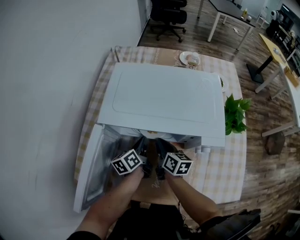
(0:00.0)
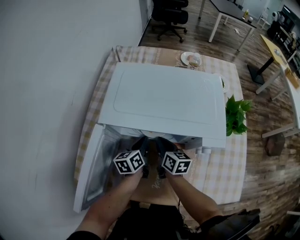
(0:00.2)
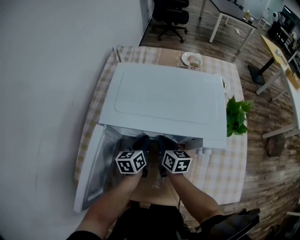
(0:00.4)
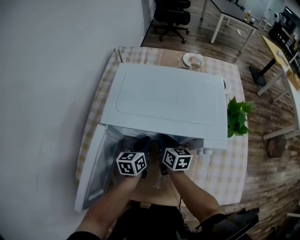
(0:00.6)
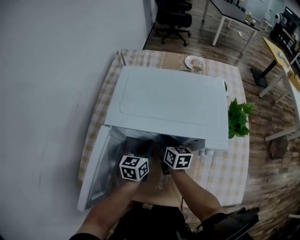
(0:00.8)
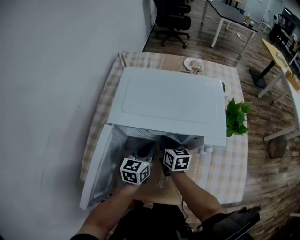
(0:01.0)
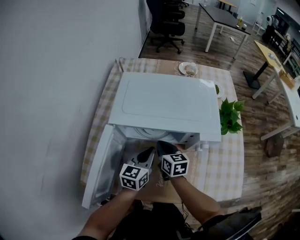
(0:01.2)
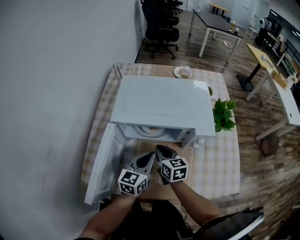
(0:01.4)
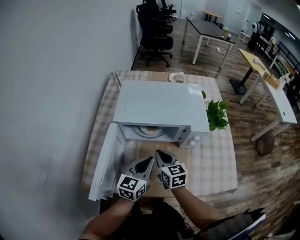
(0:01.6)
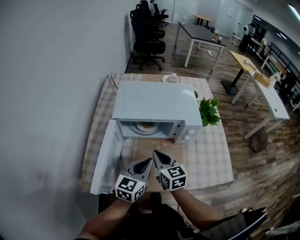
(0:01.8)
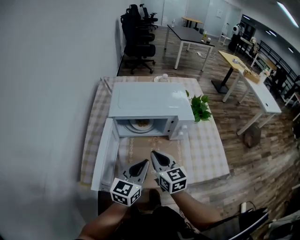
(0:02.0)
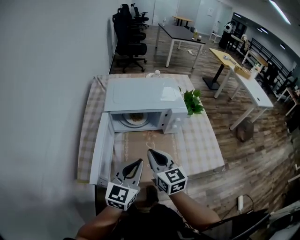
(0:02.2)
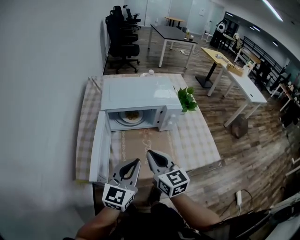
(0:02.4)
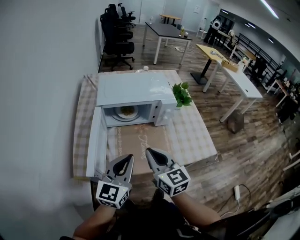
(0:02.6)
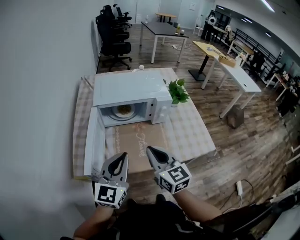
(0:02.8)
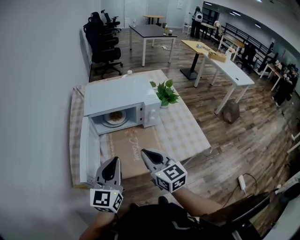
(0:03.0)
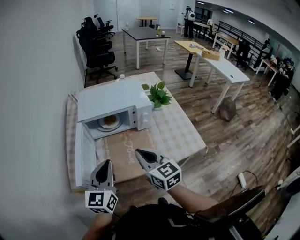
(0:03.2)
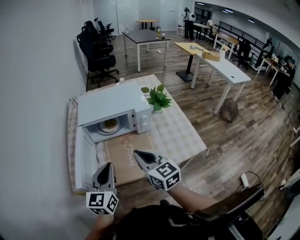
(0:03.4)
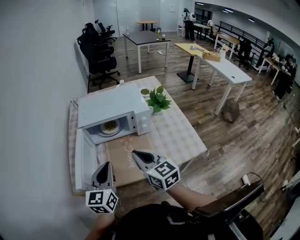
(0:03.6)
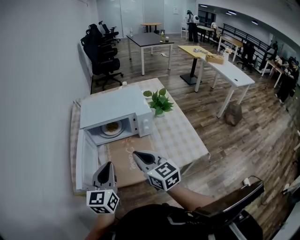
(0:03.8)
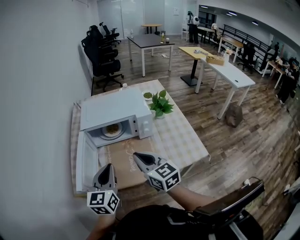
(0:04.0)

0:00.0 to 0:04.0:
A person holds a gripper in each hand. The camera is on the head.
0:00.0 to 0:01.4: The right gripper heads upward and backward, covering roughly 10 cm, and swivels some 20 degrees, while the left gripper heads upward and backward, covering some 15 cm, and twists some 40 degrees clockwise, seen from behind.
0:01.4 to 0:02.6: The two grippers go some 25 cm backward and upward. The left gripper rotates roughly 20 degrees, while the right gripper changes its angle by some 20 degrees.
0:02.6 to 0:04.0: The right gripper shifts some 5 cm to the right.

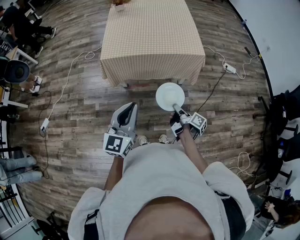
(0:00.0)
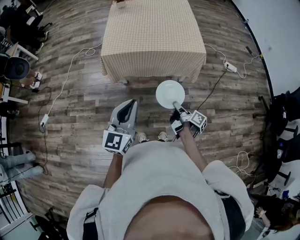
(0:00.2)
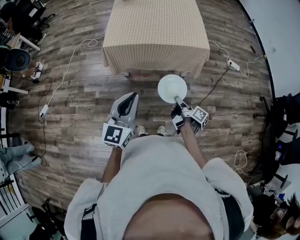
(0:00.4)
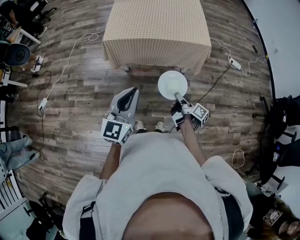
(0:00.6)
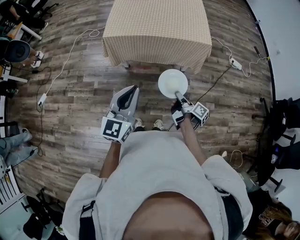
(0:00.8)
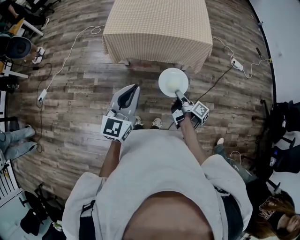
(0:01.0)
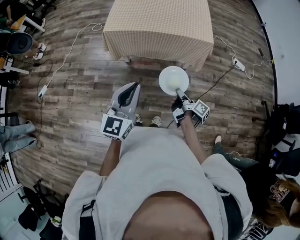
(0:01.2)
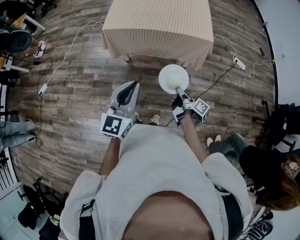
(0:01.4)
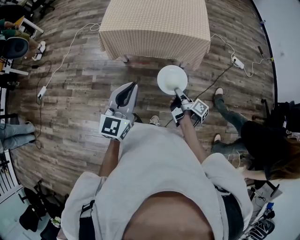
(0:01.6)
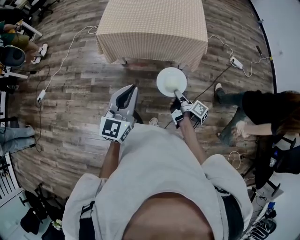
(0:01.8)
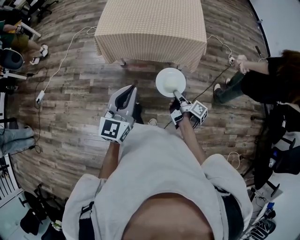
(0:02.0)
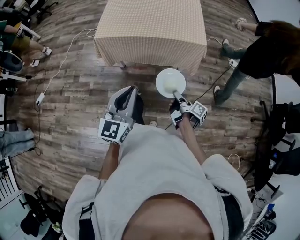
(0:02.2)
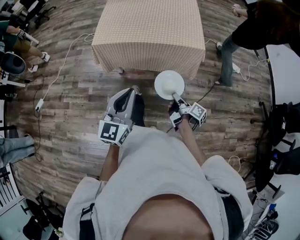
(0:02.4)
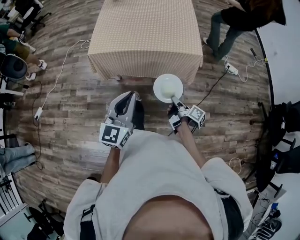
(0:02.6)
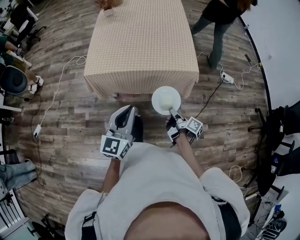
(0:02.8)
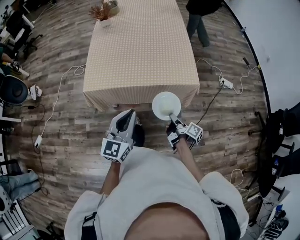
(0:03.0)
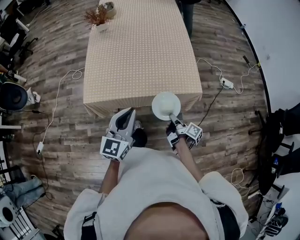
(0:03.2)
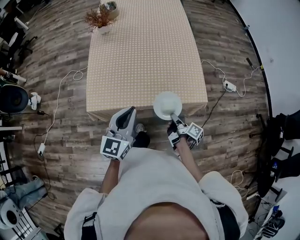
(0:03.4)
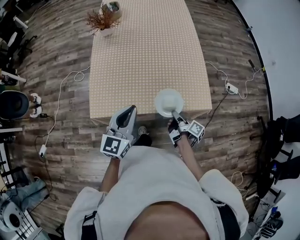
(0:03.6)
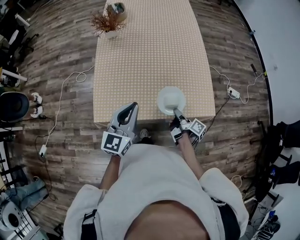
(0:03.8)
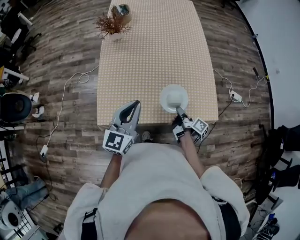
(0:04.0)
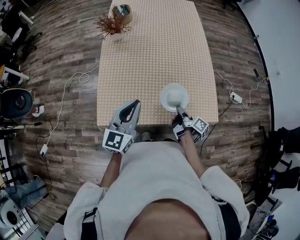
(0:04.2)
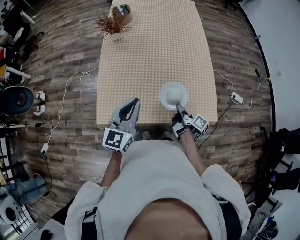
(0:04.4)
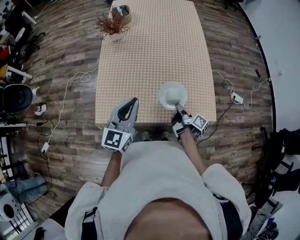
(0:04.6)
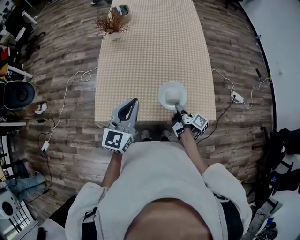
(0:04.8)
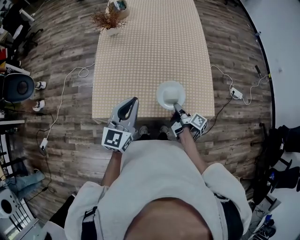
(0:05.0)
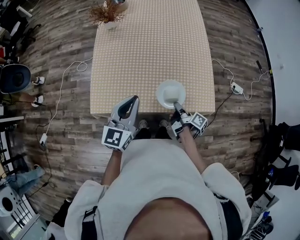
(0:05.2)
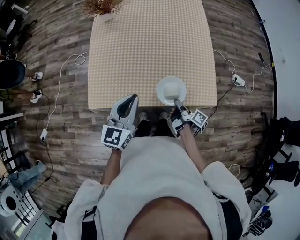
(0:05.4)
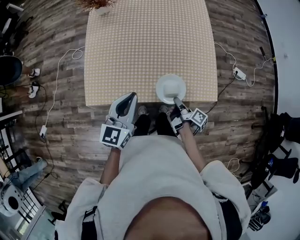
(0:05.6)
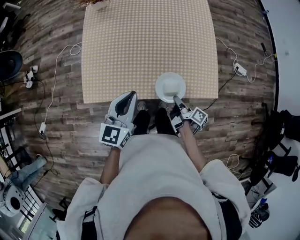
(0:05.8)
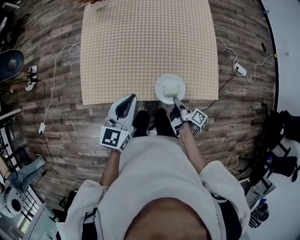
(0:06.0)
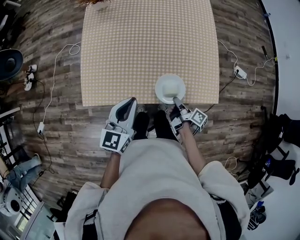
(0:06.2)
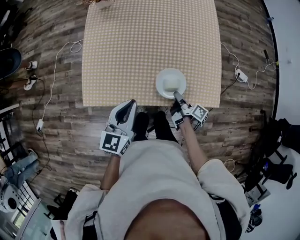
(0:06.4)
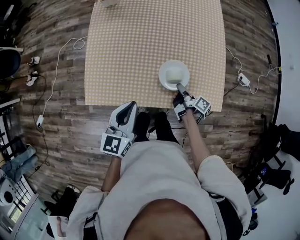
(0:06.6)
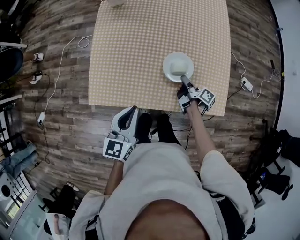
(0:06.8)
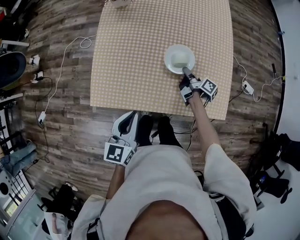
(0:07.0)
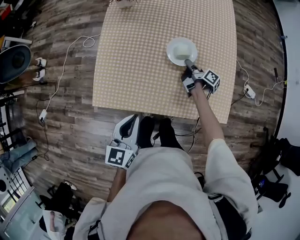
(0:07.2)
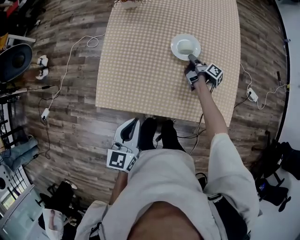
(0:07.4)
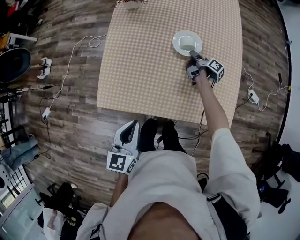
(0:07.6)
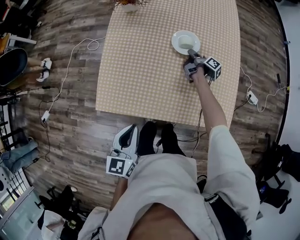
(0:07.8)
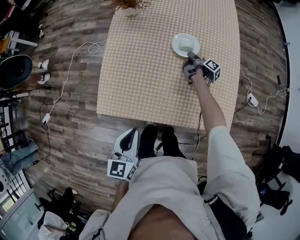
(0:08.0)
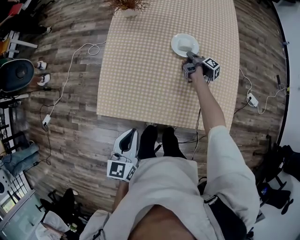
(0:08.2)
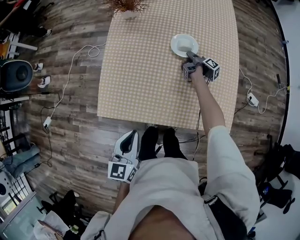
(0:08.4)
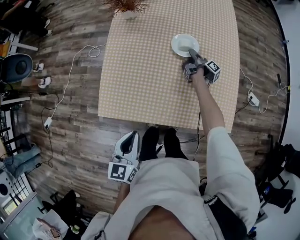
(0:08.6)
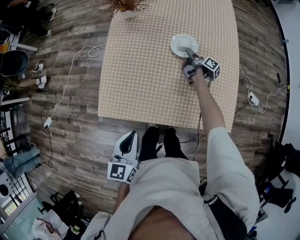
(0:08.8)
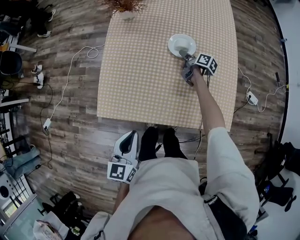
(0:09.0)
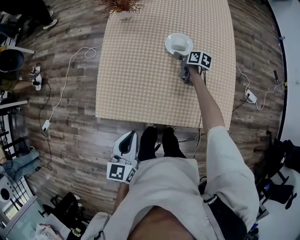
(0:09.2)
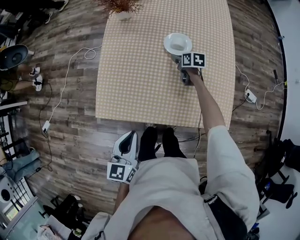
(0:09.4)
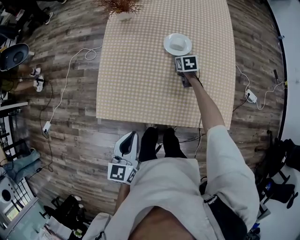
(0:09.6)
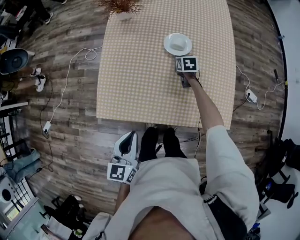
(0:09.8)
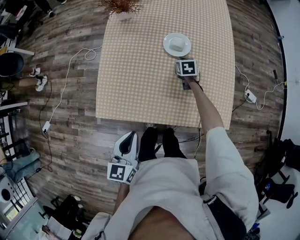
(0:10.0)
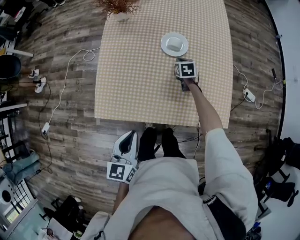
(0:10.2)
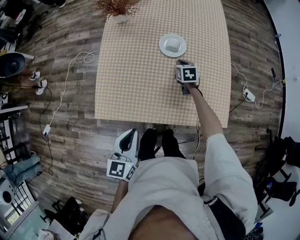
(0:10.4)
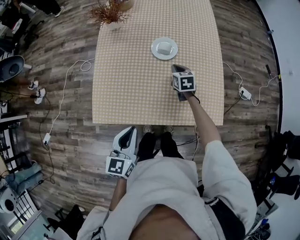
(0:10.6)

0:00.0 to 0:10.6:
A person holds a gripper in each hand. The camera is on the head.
0:00.0 to 0:01.6: The left gripper shifts by roughly 10 cm.
0:01.6 to 0:03.0: The left gripper shifts by approximately 25 cm.
0:03.0 to 0:04.6: The left gripper moves about 30 cm.
0:04.6 to 0:06.0: The left gripper moves downward, roughly 10 cm.
0:06.0 to 0:07.6: The left gripper moves roughly 10 cm.

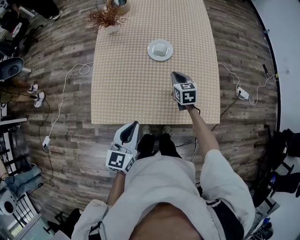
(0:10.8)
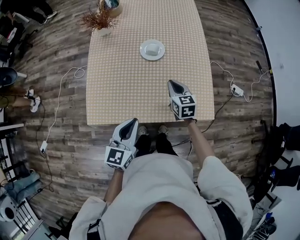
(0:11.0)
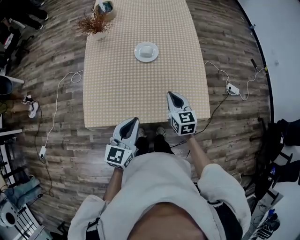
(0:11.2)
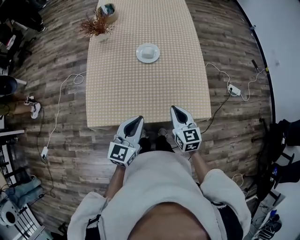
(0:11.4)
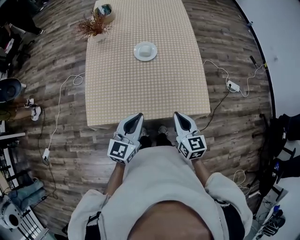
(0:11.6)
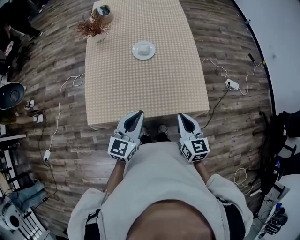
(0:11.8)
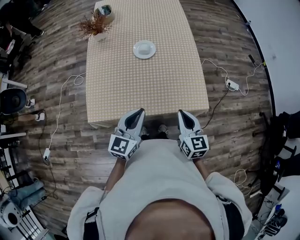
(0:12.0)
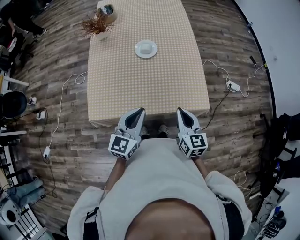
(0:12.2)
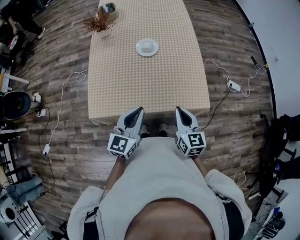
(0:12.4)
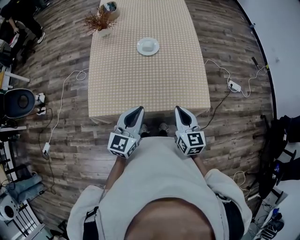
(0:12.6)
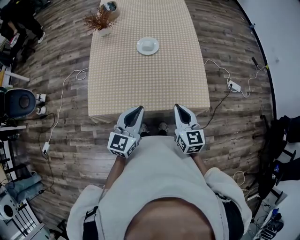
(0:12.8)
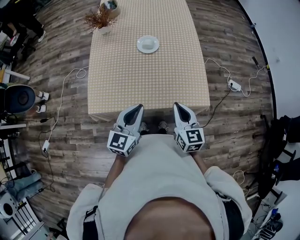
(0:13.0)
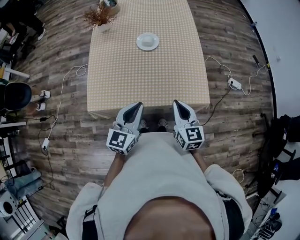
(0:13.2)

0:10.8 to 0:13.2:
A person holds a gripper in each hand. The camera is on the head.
0:10.8 to 0:12.0: The left gripper shifts by approximately 10 cm.

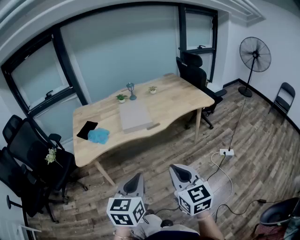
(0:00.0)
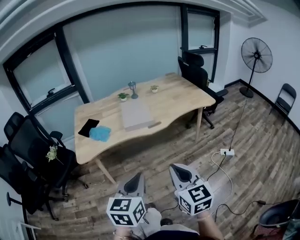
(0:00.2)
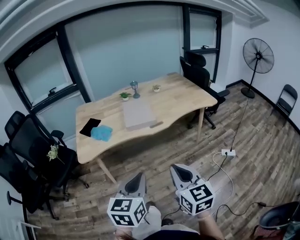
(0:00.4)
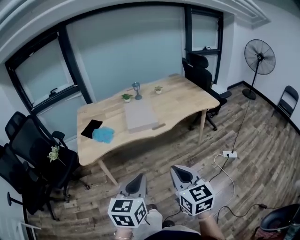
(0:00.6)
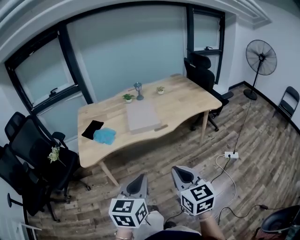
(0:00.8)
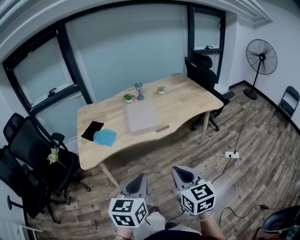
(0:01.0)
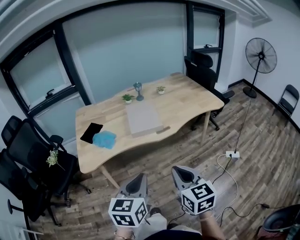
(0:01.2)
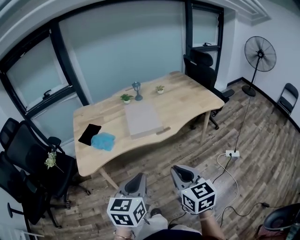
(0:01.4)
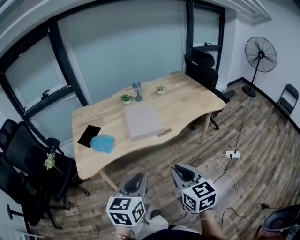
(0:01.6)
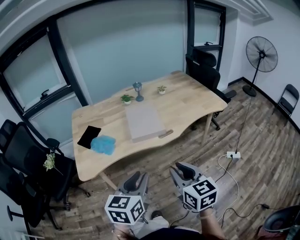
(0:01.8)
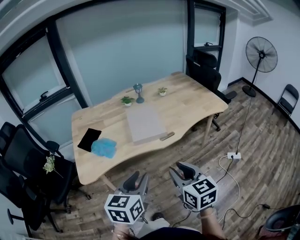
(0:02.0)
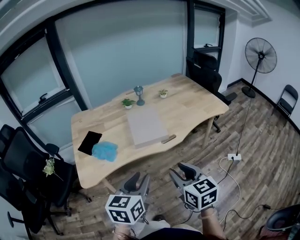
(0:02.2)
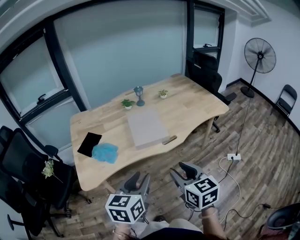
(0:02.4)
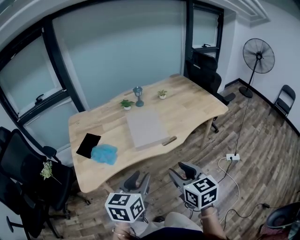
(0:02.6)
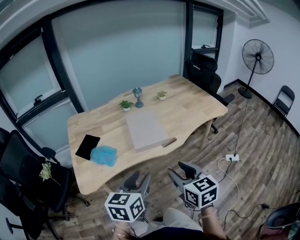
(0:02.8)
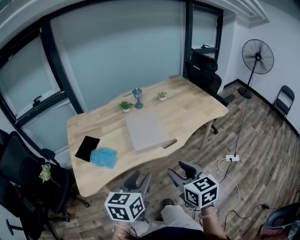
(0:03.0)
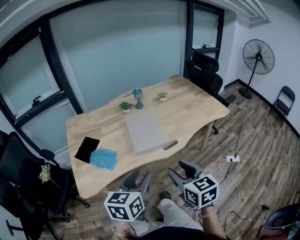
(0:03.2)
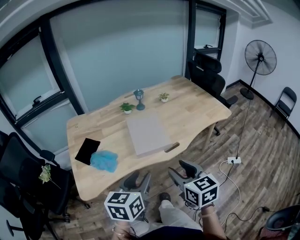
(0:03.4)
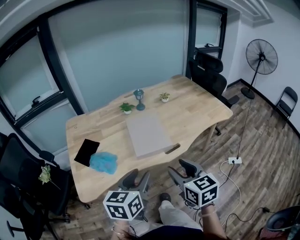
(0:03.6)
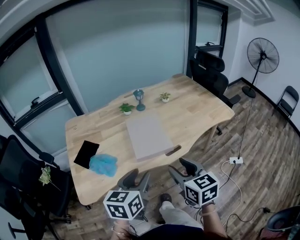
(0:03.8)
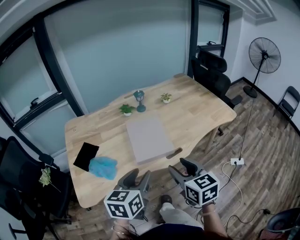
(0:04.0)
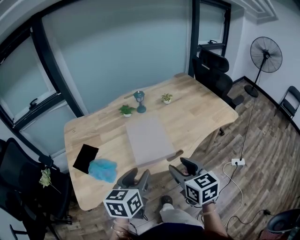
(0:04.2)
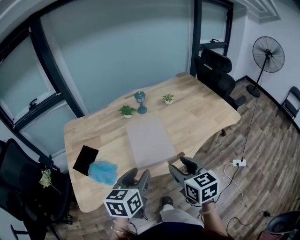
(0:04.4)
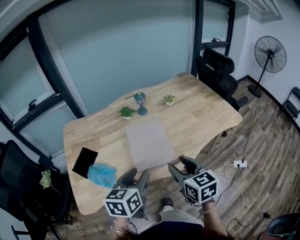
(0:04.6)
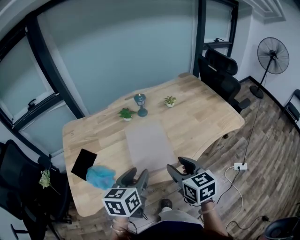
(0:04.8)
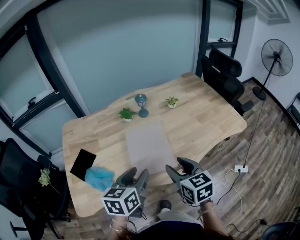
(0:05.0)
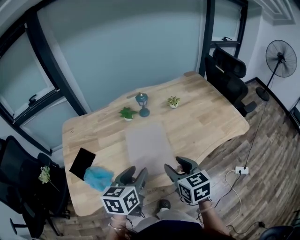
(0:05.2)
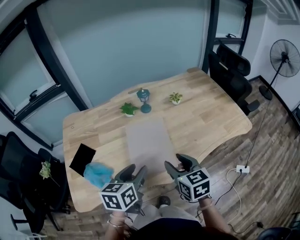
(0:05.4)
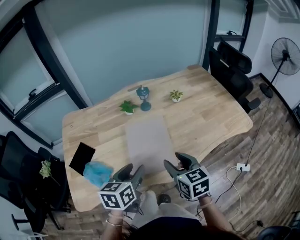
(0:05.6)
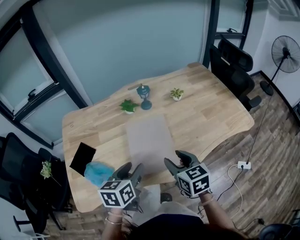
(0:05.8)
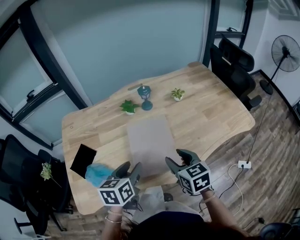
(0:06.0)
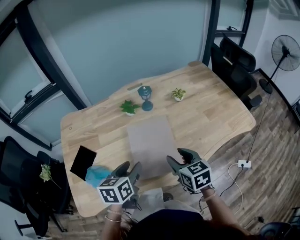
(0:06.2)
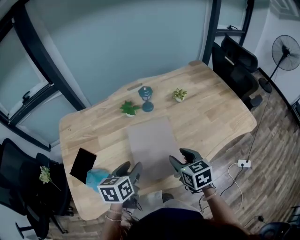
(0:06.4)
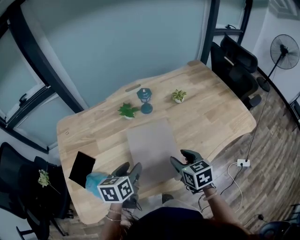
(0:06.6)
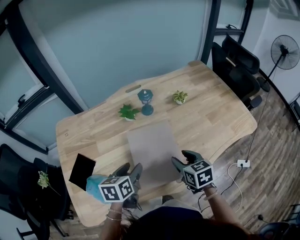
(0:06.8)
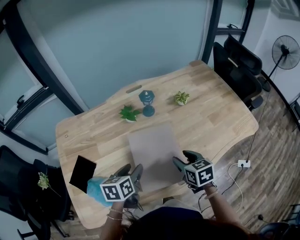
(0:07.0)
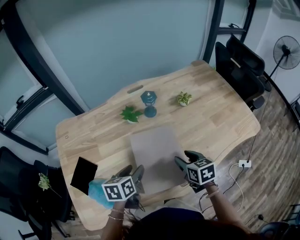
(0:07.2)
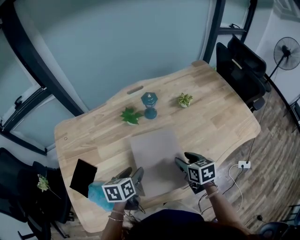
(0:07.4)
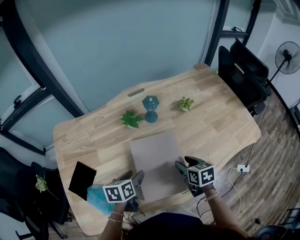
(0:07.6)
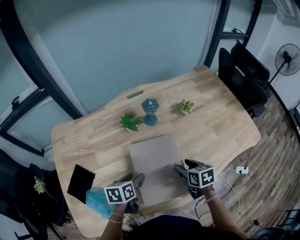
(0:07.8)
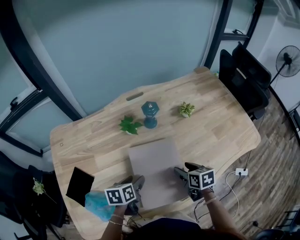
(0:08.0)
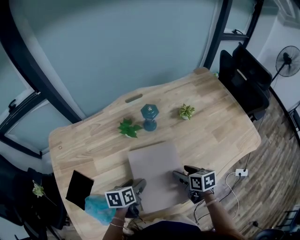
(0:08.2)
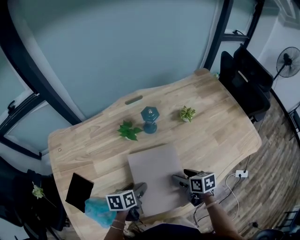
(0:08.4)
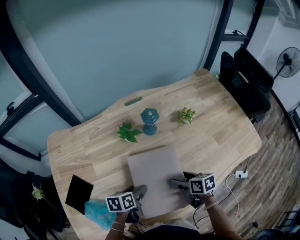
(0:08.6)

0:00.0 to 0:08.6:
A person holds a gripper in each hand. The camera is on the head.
0:00.0 to 0:01.4: The grippers both shift forward and to the left by about 10 cm.
0:01.4 to 0:02.8: Both grippers move forward, roughly 10 cm. The right gripper opens its fingers. The left gripper opens its fingers.
0:02.8 to 0:04.4: Both grippers travel together forward, approximately 15 cm.
0:04.4 to 0:05.8: Both grippers move forward and downward, roughly 15 cm.
0:05.8 to 0:07.2: Both grippers move forward and downward, about 15 cm.
0:07.2 to 0:08.6: Both grippers travel together downward, some 10 cm. The right gripper swivels approximately 20 degrees, and opens its fingers.
